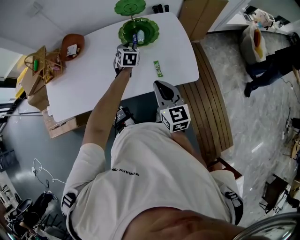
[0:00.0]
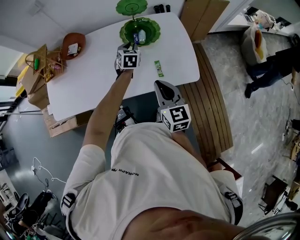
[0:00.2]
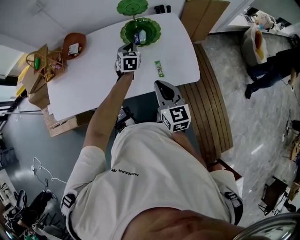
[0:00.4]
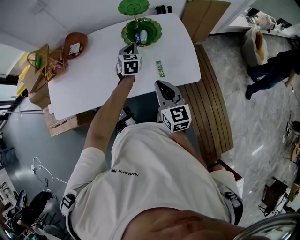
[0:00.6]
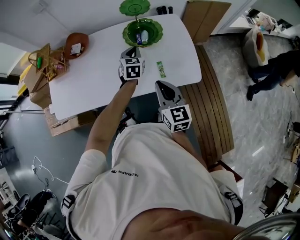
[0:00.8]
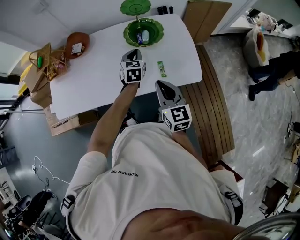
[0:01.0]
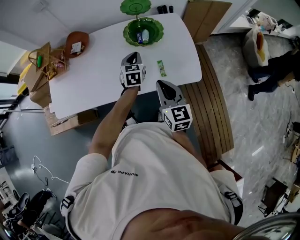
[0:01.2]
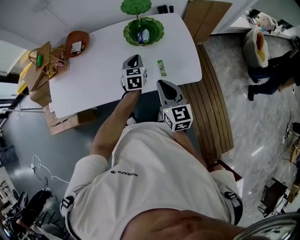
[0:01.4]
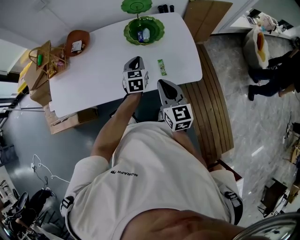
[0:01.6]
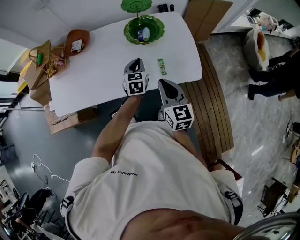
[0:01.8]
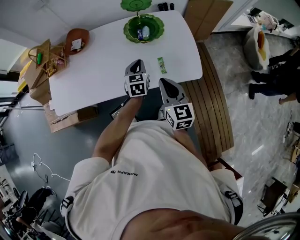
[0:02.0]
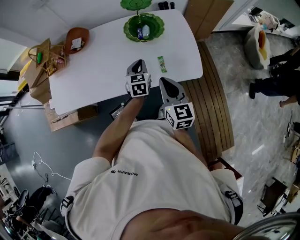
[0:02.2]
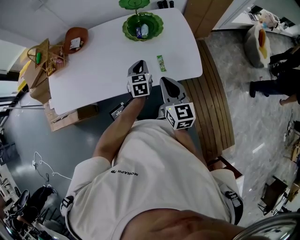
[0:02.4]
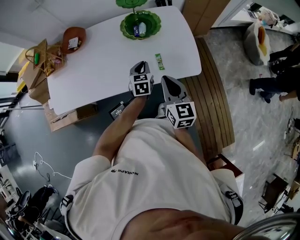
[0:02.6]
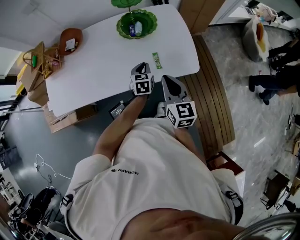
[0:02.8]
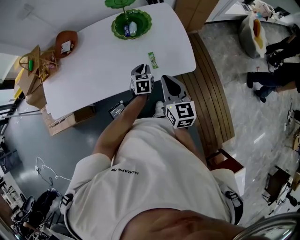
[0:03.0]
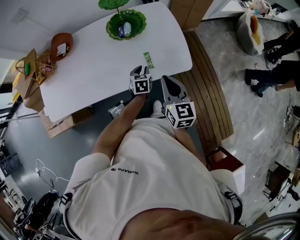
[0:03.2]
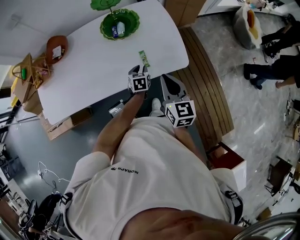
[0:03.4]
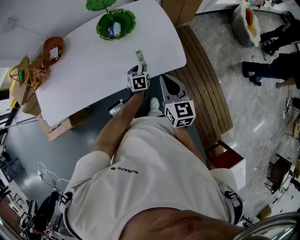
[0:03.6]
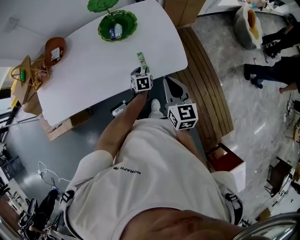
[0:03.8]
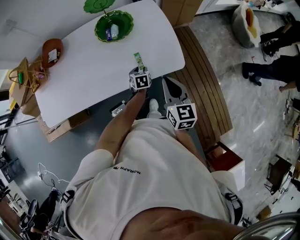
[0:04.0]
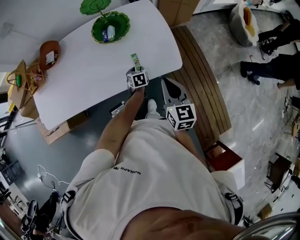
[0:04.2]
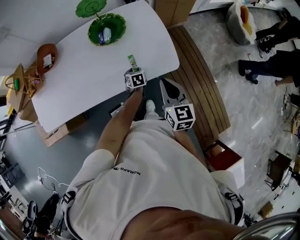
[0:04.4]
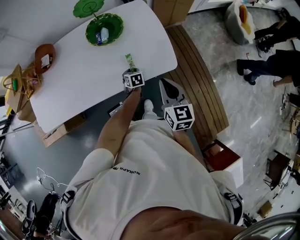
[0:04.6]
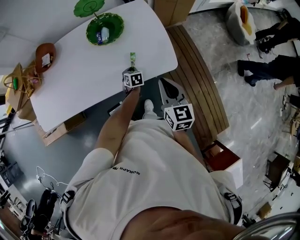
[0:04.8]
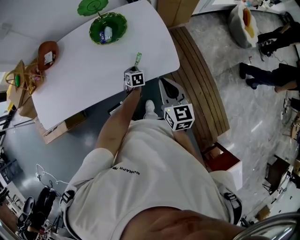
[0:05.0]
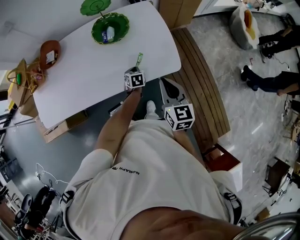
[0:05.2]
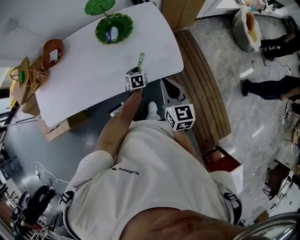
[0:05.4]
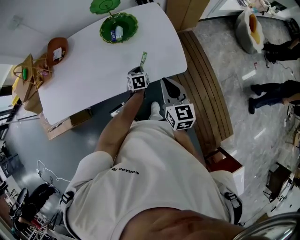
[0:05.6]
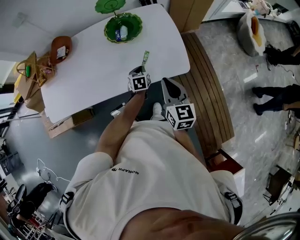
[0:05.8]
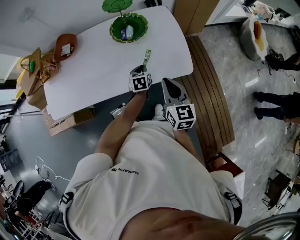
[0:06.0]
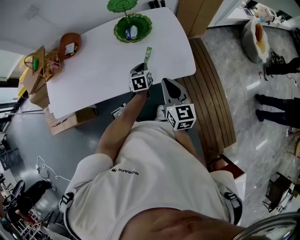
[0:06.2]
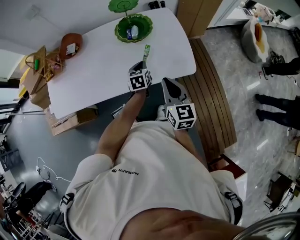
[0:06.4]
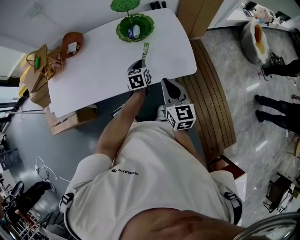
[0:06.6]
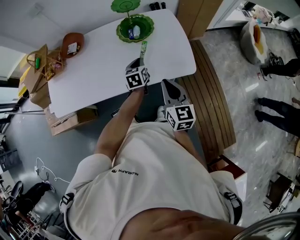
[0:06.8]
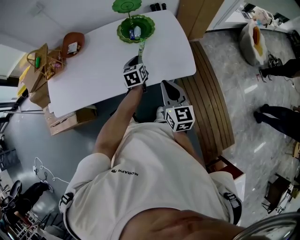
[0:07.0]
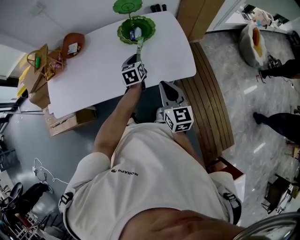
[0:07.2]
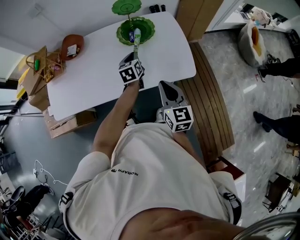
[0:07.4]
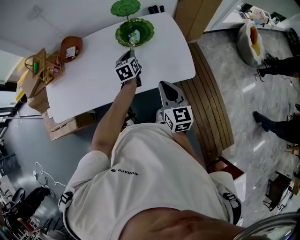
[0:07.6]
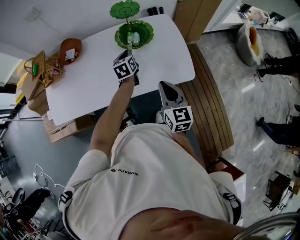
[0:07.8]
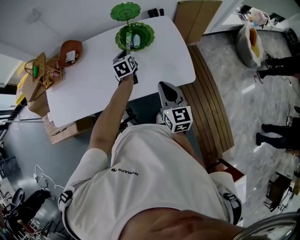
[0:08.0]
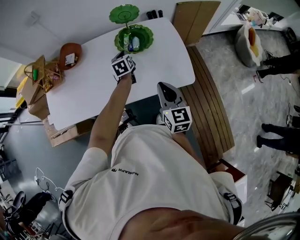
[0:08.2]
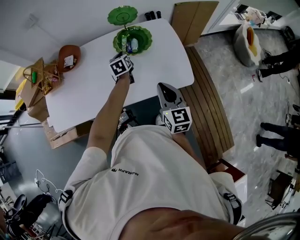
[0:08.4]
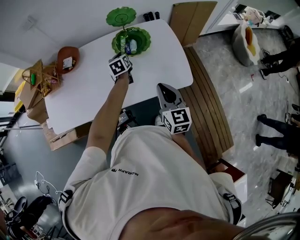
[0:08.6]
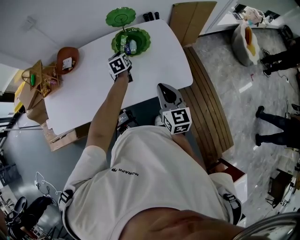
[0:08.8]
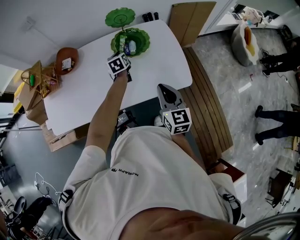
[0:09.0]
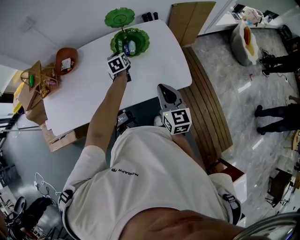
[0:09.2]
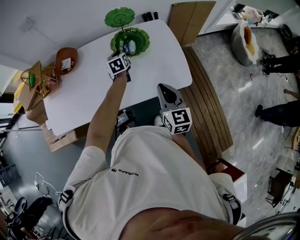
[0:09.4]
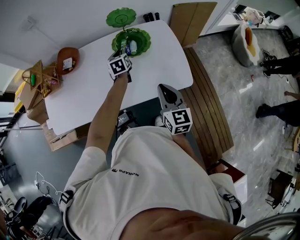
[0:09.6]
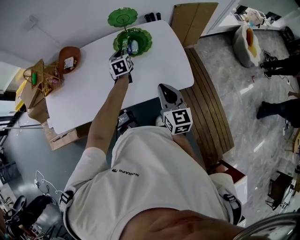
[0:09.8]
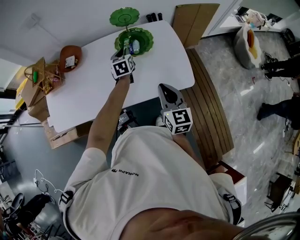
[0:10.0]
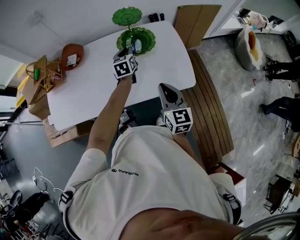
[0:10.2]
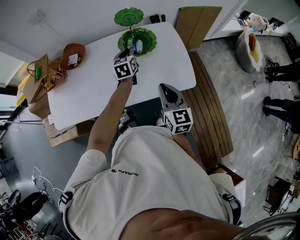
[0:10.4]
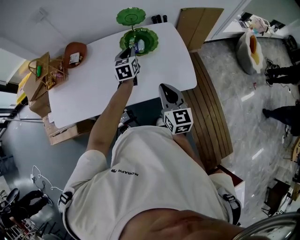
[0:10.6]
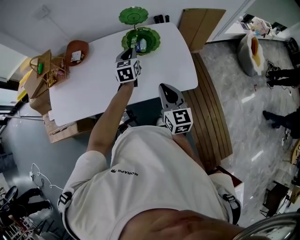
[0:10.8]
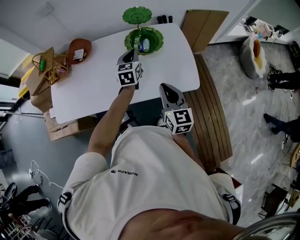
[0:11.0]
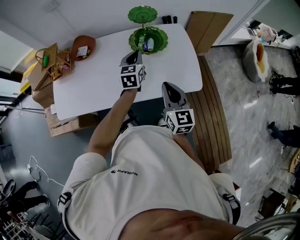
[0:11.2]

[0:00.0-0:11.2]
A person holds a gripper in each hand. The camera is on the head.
0.0 to 1.6 s: The left gripper moves backward, some 10 cm.
1.6 to 3.2 s: The right gripper moves to the right, some 10 cm, while the left gripper goes some 15 cm downward, to the right and backward.
3.2 to 4.8 s: The right gripper travels to the right by approximately 10 cm; the left gripper is displaced downward by approximately 10 cm.
4.8 to 6.4 s: The right gripper heads to the left, covering about 10 cm; the left gripper moves upward and to the left, approximately 20 cm, and changes its angle by approximately 20 degrees.
6.4 to 8.0 s: The left gripper travels forward, to the left and upward by approximately 15 cm.
8.0 to 9.6 s: The grippers stay close to where they were, moving slightly.
9.6 to 11.2 s: The left gripper heads upward and backward, covering roughly 15 cm.

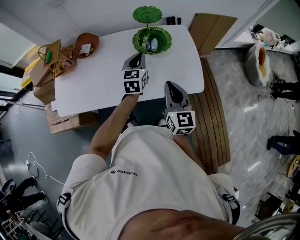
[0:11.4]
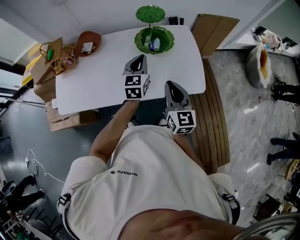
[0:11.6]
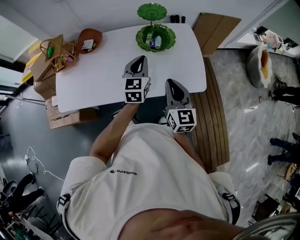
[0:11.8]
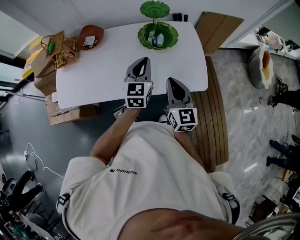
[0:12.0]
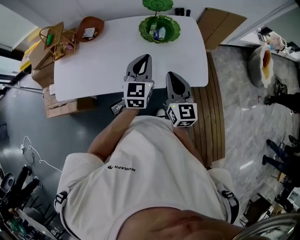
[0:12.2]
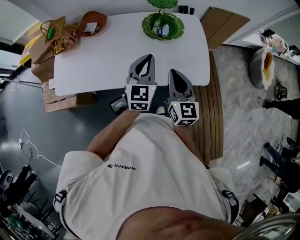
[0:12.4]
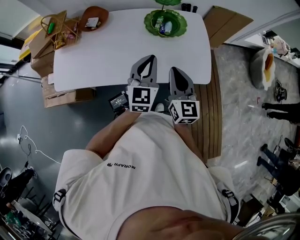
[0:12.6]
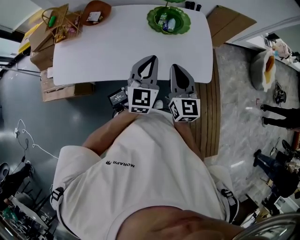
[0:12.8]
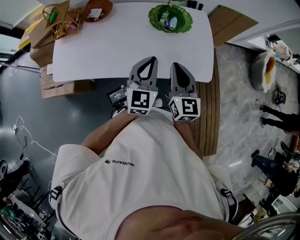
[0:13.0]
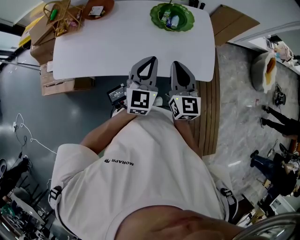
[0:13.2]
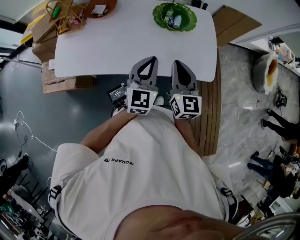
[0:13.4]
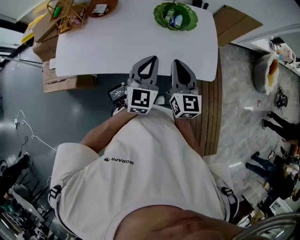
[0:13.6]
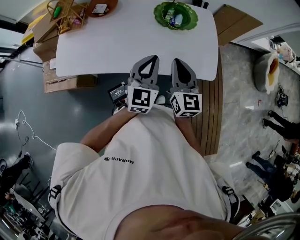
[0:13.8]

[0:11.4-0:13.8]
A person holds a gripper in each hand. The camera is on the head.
11.4 to 12.6 s: The left gripper is displaced backward by some 10 cm.
12.6 to 13.8 s: The grippers stay close to where they were, moving slightly.

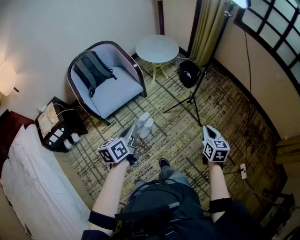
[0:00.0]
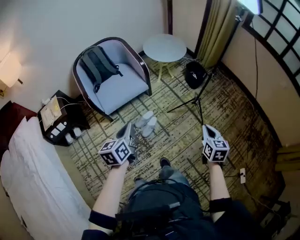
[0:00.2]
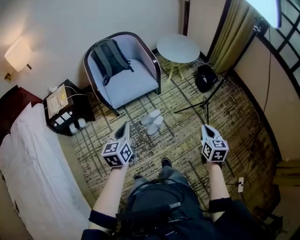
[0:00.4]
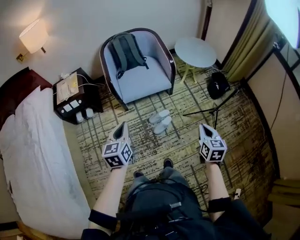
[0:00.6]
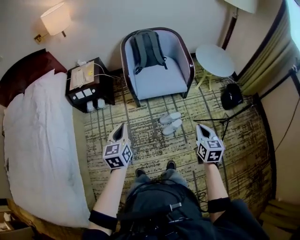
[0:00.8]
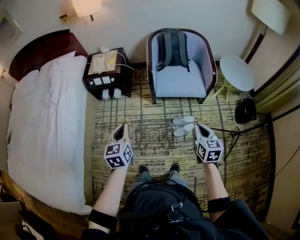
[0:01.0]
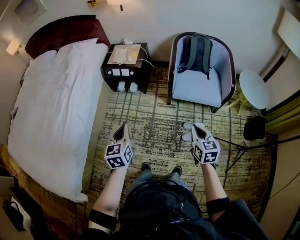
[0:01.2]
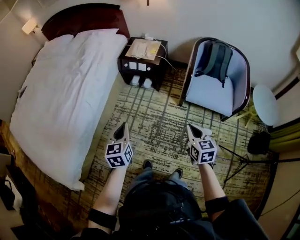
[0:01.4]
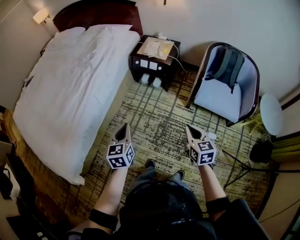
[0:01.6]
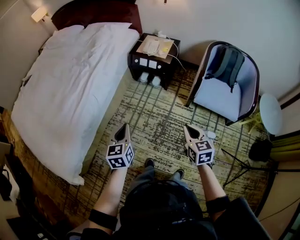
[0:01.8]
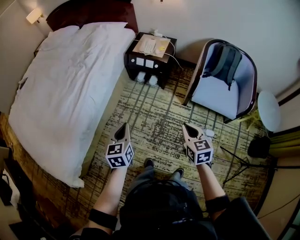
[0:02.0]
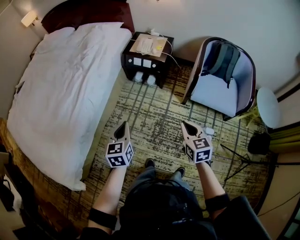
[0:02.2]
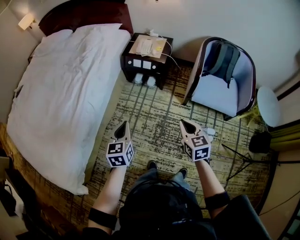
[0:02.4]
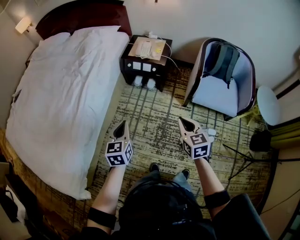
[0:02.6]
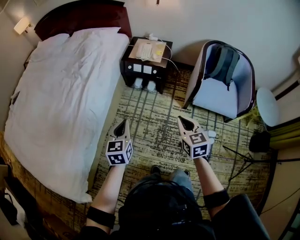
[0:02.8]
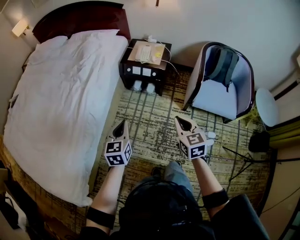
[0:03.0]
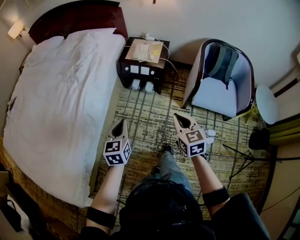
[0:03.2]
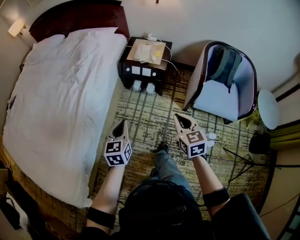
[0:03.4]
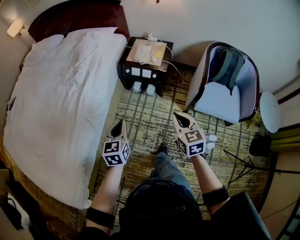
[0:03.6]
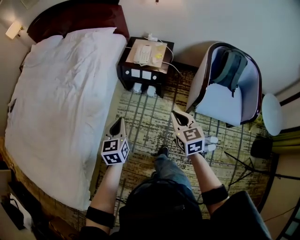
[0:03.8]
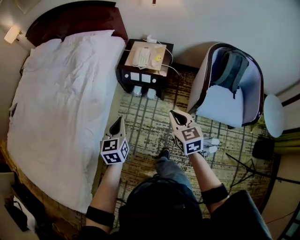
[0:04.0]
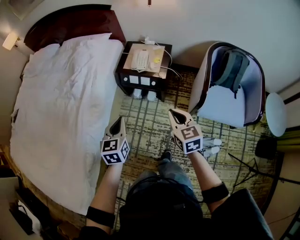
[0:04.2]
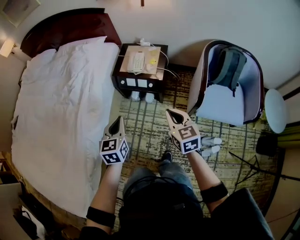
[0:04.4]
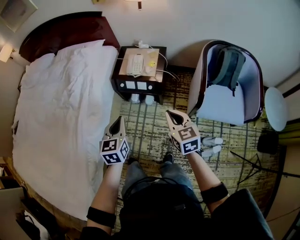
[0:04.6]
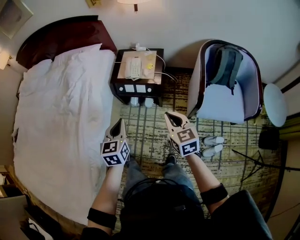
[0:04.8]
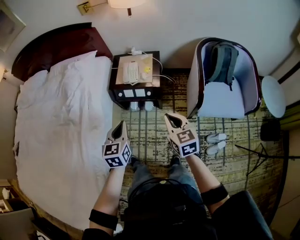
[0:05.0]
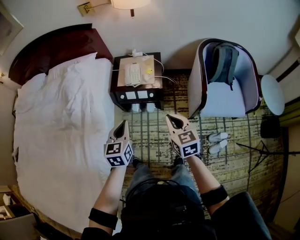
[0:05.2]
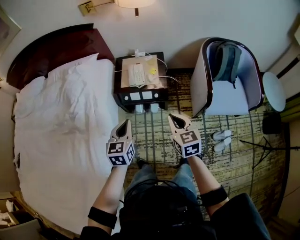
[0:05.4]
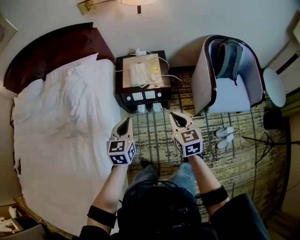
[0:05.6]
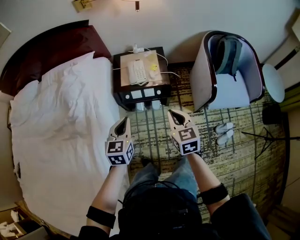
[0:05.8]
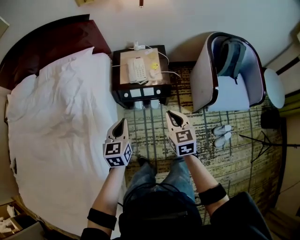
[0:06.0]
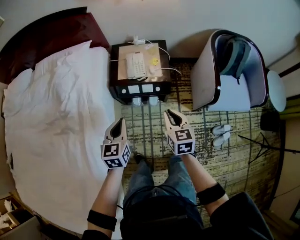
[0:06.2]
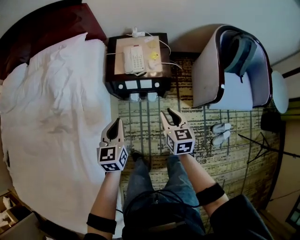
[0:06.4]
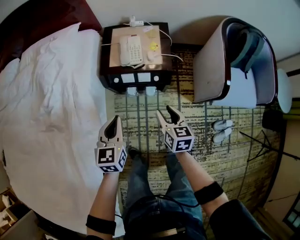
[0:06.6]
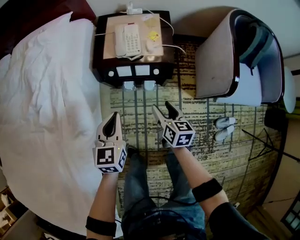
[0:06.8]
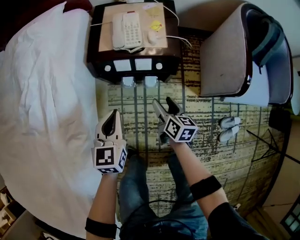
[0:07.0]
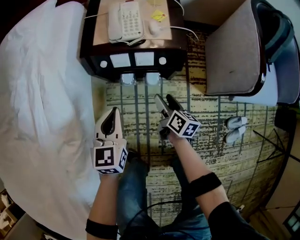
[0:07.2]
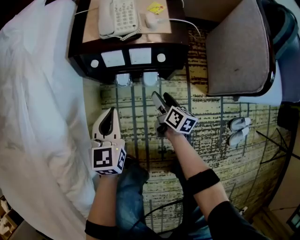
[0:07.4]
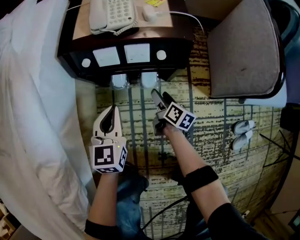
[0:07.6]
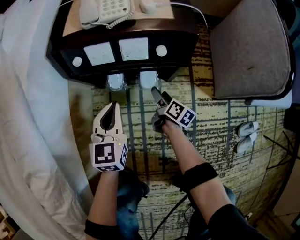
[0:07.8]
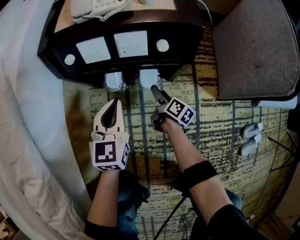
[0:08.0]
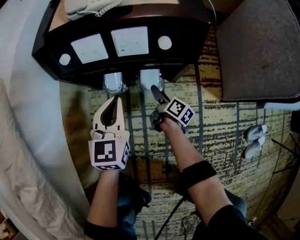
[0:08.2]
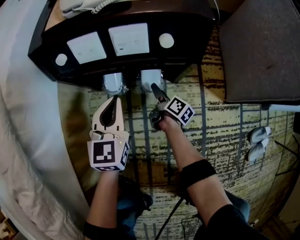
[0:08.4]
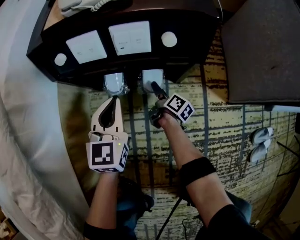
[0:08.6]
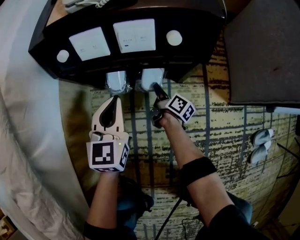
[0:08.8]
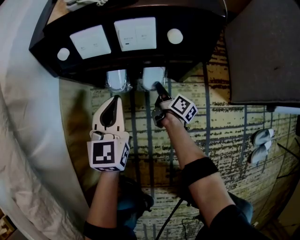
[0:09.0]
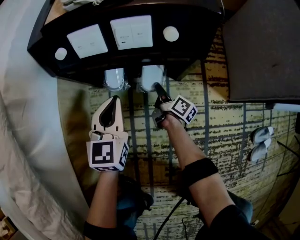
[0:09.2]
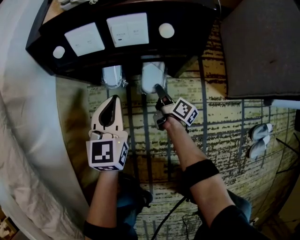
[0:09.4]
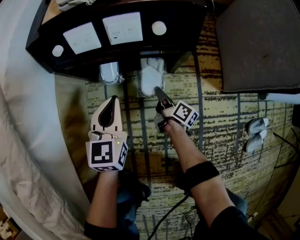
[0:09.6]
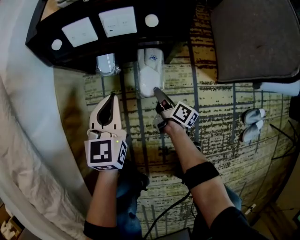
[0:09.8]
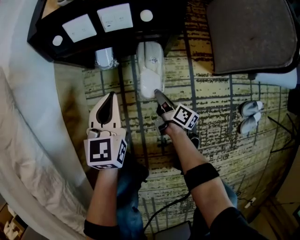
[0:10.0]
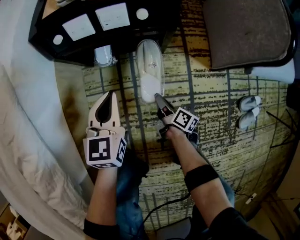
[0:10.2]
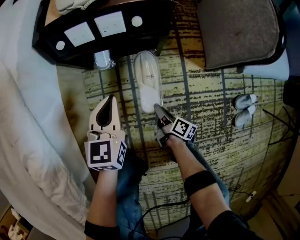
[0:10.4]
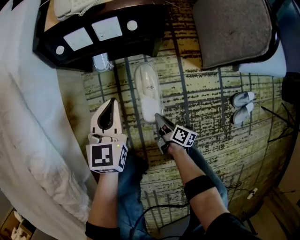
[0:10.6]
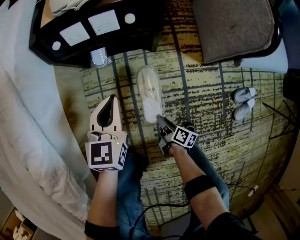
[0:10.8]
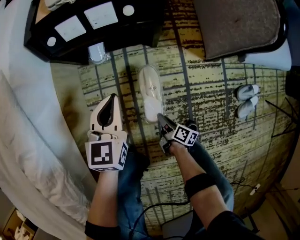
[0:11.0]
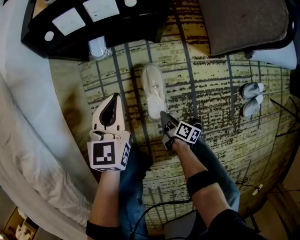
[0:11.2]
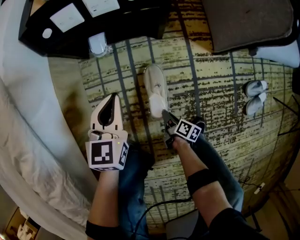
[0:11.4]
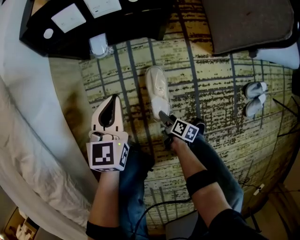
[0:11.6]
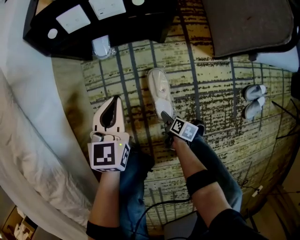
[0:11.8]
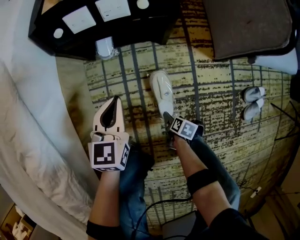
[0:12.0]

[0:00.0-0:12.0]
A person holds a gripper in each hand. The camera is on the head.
0.0 to 1.6 s: Both grippers are carried about 60 cm. The left gripper swivels roughly 70 degrees; the right gripper changes its angle by roughly 70 degrees.
1.6 to 3.0 s: Both grippers travel together forward and to the left, about 20 cm.
3.0 to 4.4 s: The two grippers go some 25 cm forward.
4.4 to 6.0 s: The left gripper goes approximately 20 cm forward and to the left, while the right gripper goes approximately 20 cm to the left and forward, and swivels roughly 20 degrees.
6.0 to 7.6 s: The two grippers go roughly 60 cm downward. The right gripper twists some 50 degrees clockwise, seen from behind, and opens its fingers.
7.6 to 9.0 s: Both grippers move downward, some 15 cm. The right gripper rotates some 20 degrees, and closes its fingers.
9.0 to 10.4 s: The left gripper goes roughly 15 cm upward and backward. The right gripper travels backward and upward by approximately 30 cm.
10.4 to 12.0 s: The right gripper is displaced backward and downward by approximately 20 cm, angles its fingers downward, by about 40 degrees, and opens up; the left gripper moves some 5 cm.
